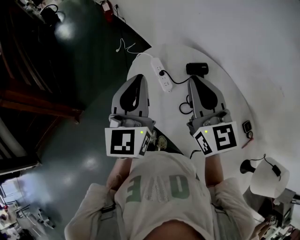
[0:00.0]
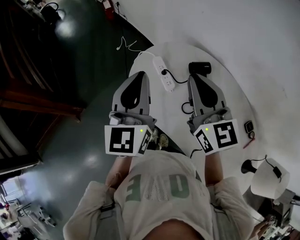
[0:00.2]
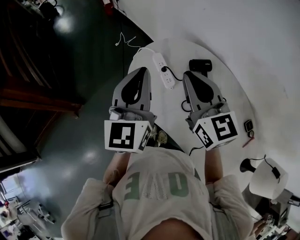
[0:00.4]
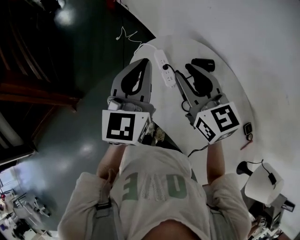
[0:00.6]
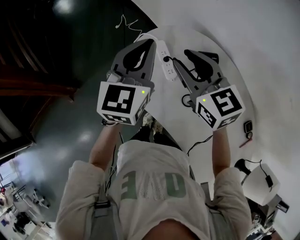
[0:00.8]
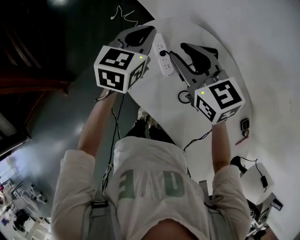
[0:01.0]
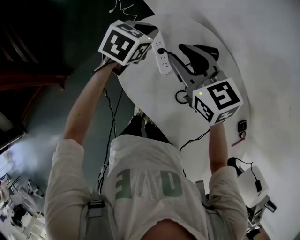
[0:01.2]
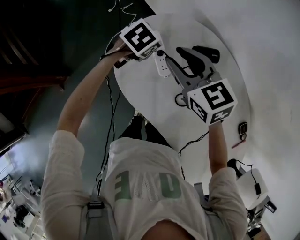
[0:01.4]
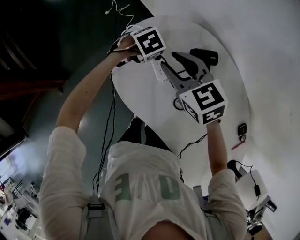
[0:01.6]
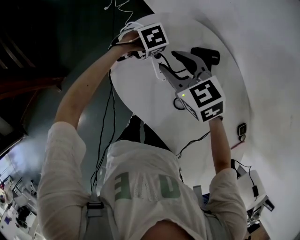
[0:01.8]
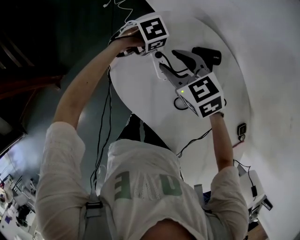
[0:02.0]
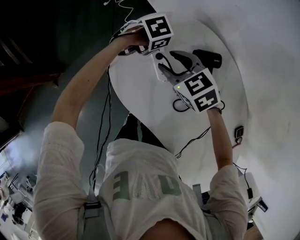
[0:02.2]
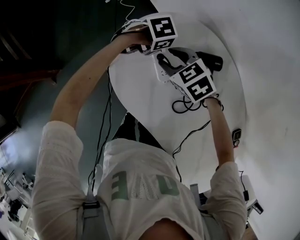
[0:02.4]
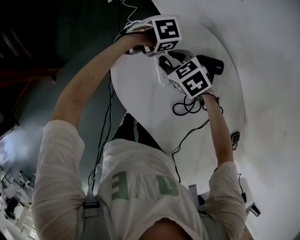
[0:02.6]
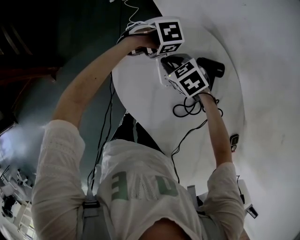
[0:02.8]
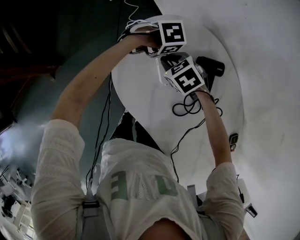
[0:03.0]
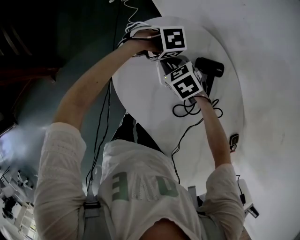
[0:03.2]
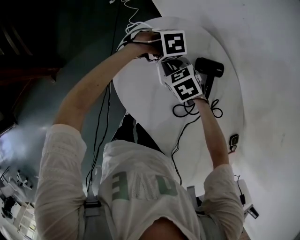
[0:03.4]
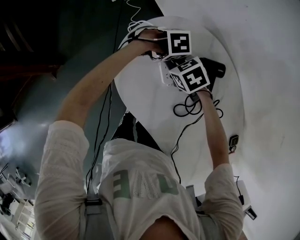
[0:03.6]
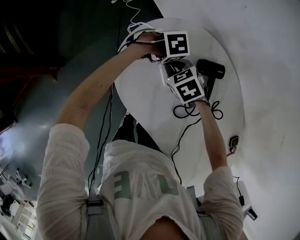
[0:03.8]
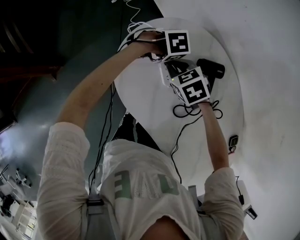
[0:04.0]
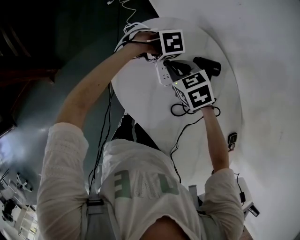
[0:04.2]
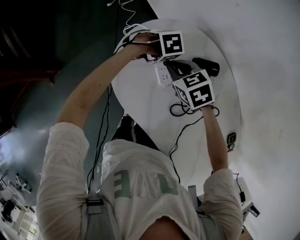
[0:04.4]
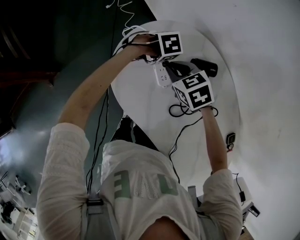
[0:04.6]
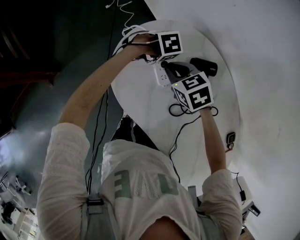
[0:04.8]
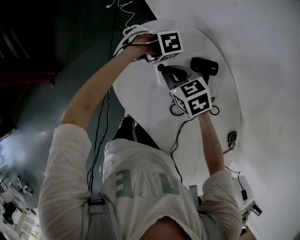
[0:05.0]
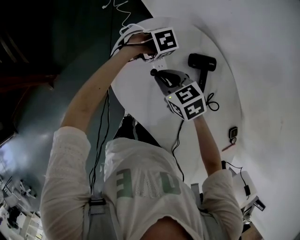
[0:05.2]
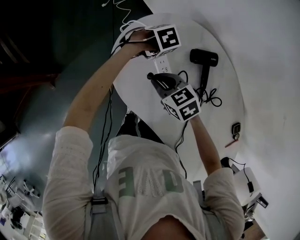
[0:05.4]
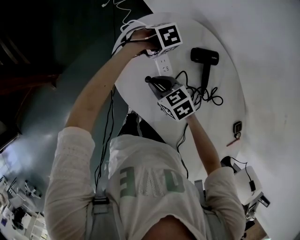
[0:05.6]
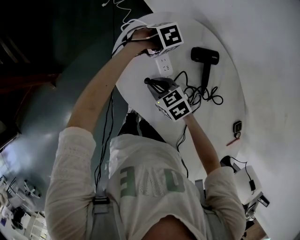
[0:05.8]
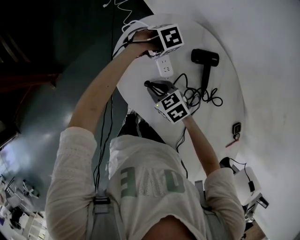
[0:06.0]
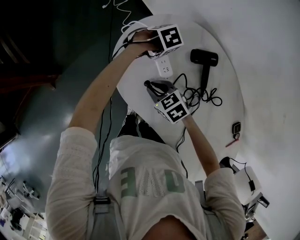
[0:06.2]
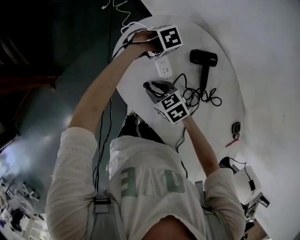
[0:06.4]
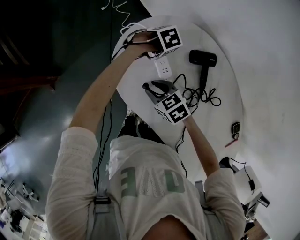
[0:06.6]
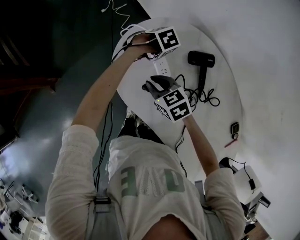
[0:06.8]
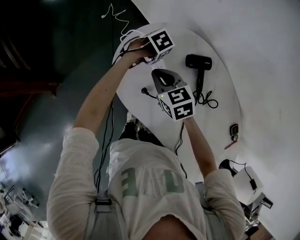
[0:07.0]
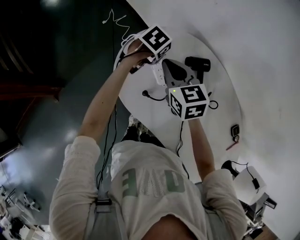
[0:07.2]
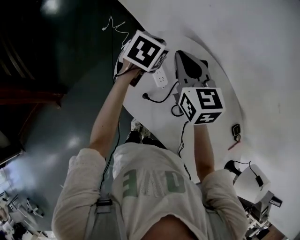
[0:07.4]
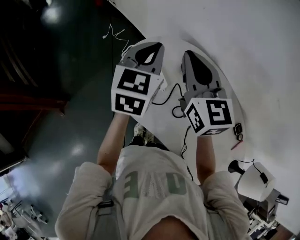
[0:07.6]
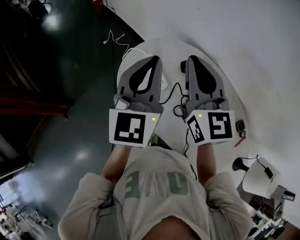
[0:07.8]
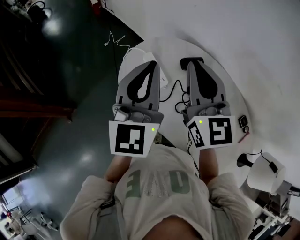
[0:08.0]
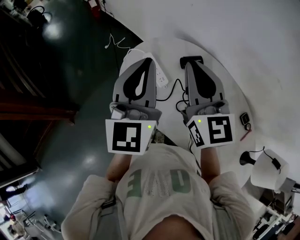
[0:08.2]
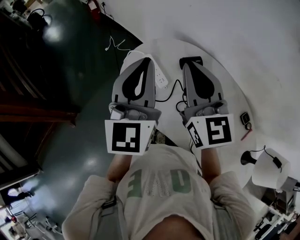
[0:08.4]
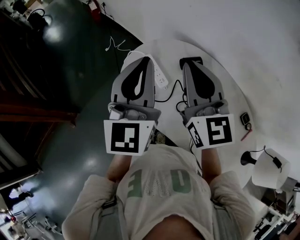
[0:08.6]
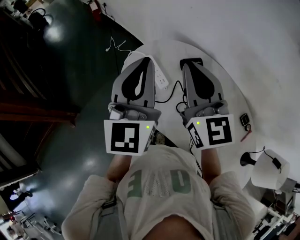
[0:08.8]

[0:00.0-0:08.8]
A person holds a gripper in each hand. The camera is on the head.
0:00.0 to 0:01.4: The right gripper moves downward and forward, roughly 20 cm, rotates about 30 degrees, and opens up. Meanwhile the left gripper goes about 35 cm downward and forward, and angles its fingers downward, by some 60 degrees.
0:01.4 to 0:03.0: The left gripper travels downward by approximately 10 cm, and rotates some 30 degrees. Meanwhile the right gripper is displaced downward by approximately 20 cm, and angles its fingers downward, by roughly 40 degrees.
0:03.0 to 0:04.4: The right gripper is displaced upward by roughly 5 cm.
0:04.4 to 0:05.8: The right gripper moves roughly 15 cm.
0:05.8 to 0:07.4: The two grippers go approximately 25 cm upward. The right gripper tilts its fingers some 30 degrees upward; the left gripper tips its fingers upward by roughly 40 degrees.
0:07.4 to 0:08.8: The right gripper is displaced backward and upward by roughly 15 cm. The left gripper moves upward and backward, about 30 cm, and points its fingers approximately 50 degrees further upward.

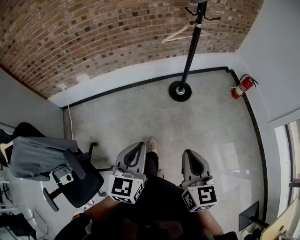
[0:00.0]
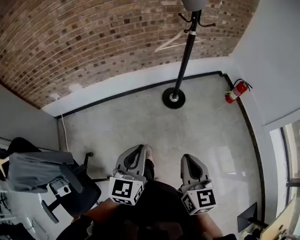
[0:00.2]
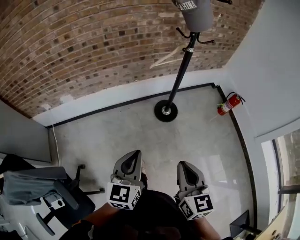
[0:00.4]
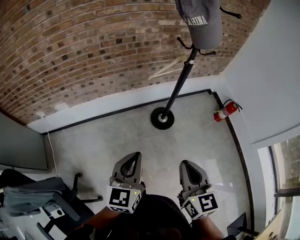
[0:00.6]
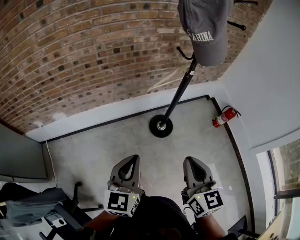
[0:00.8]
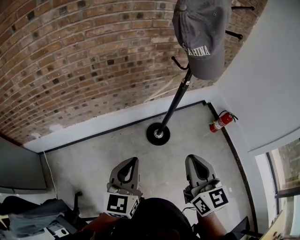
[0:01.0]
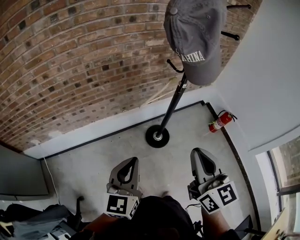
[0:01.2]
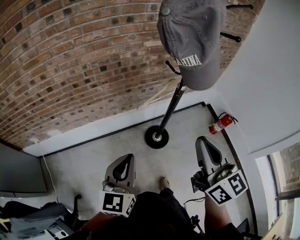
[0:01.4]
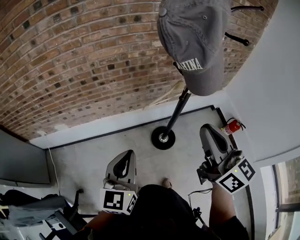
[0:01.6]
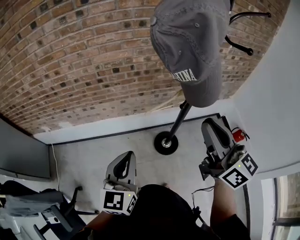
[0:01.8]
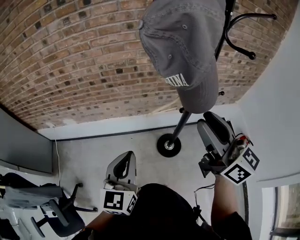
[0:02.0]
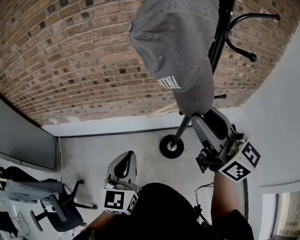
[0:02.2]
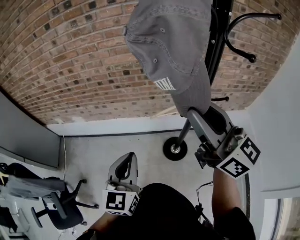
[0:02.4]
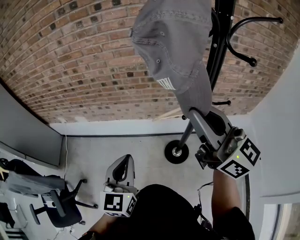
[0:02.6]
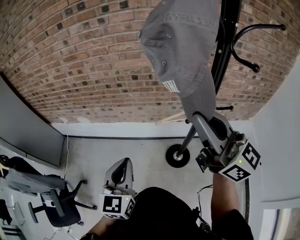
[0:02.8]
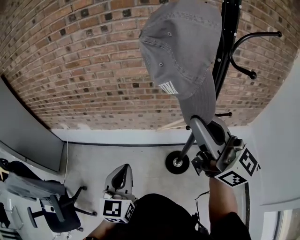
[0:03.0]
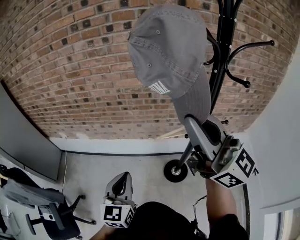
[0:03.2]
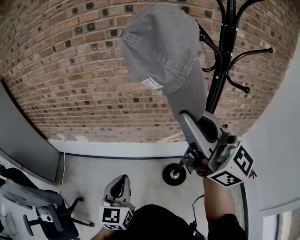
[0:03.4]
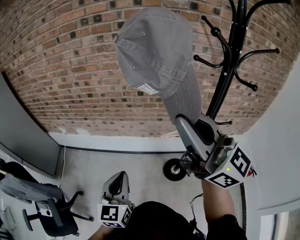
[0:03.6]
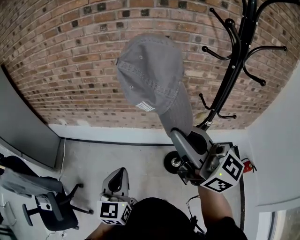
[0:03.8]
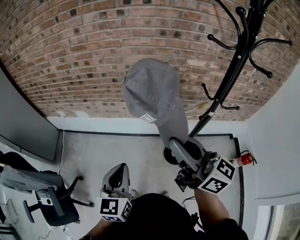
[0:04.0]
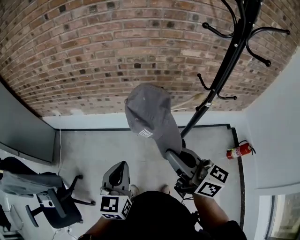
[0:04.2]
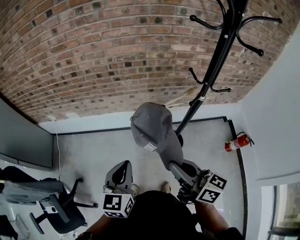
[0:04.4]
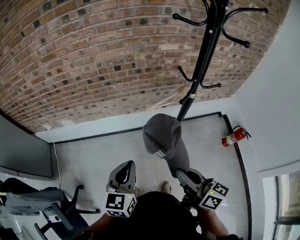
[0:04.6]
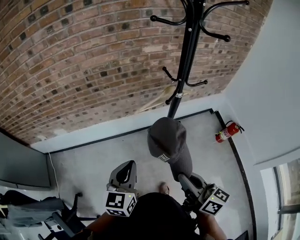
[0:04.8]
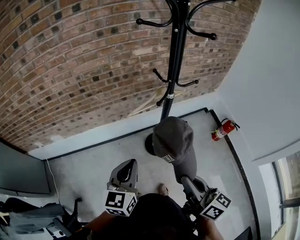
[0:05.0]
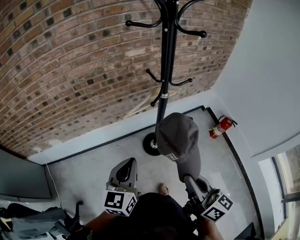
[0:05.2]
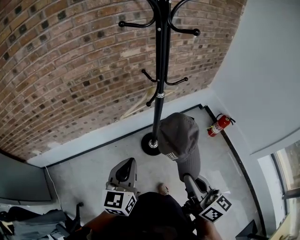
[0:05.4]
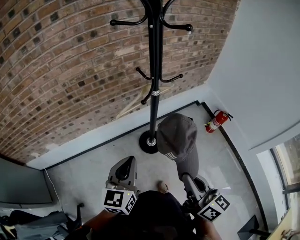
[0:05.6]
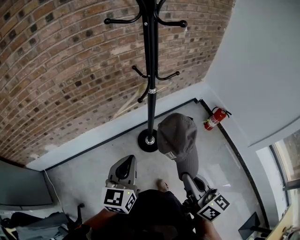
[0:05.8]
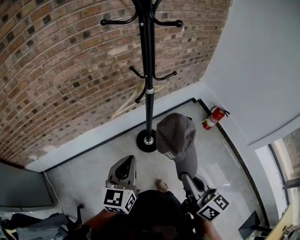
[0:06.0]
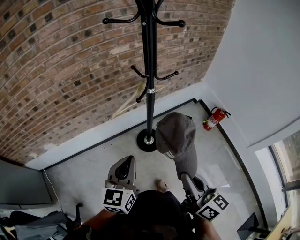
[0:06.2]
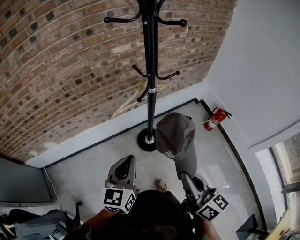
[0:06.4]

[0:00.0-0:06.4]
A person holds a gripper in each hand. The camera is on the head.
0:00.0 to 0:01.6: The pair of grippers is taken forward, some 50 cm. The right gripper moves upward, some 20 cm, and turns by some 30 degrees.
0:01.6 to 0:03.2: The left gripper swivels roughly 20 degrees, while the right gripper heads upward, covering some 15 cm, rotates roughly 40 degrees, and opens, then closes once more.
0:03.2 to 0:04.8: The right gripper heads downward, covering some 30 cm, and swivels roughly 50 degrees. Meanwhile the left gripper travels downward by approximately 5 cm, and rotates about 20 degrees.
0:04.8 to 0:06.4: The grippers both shift to the right by approximately 10 cm. The right gripper swivels some 20 degrees.

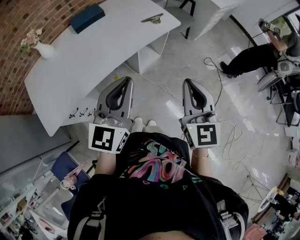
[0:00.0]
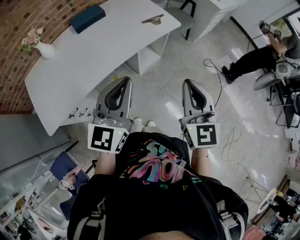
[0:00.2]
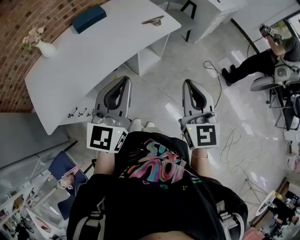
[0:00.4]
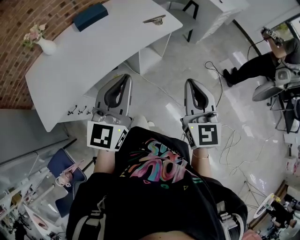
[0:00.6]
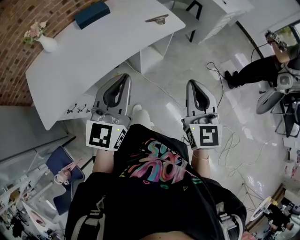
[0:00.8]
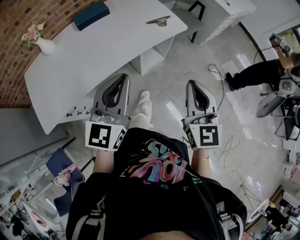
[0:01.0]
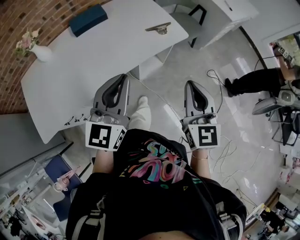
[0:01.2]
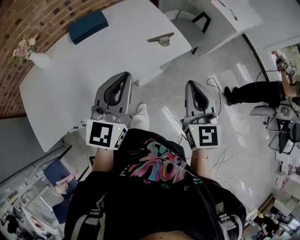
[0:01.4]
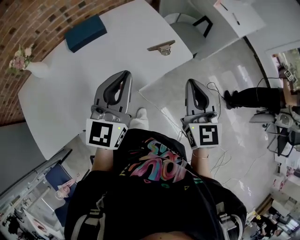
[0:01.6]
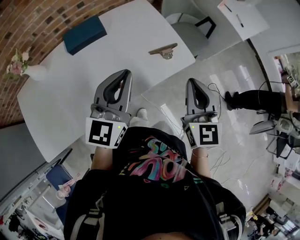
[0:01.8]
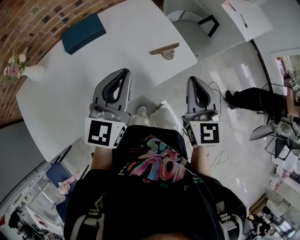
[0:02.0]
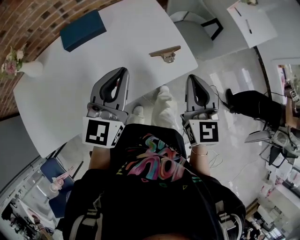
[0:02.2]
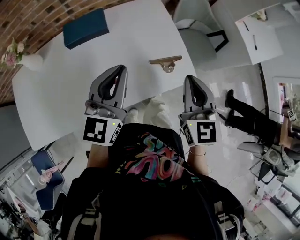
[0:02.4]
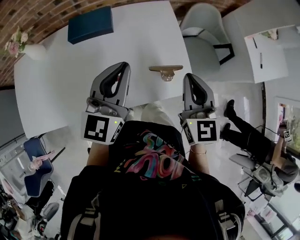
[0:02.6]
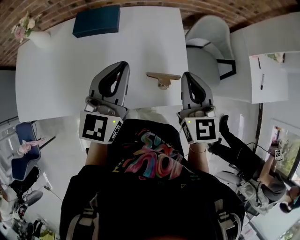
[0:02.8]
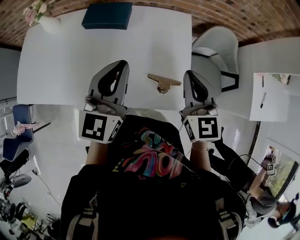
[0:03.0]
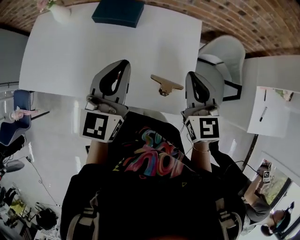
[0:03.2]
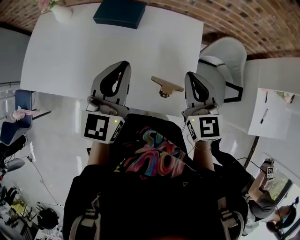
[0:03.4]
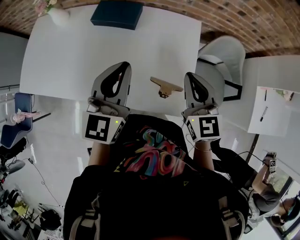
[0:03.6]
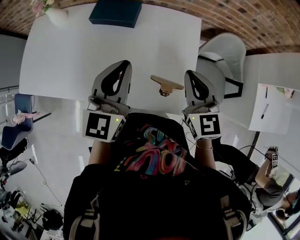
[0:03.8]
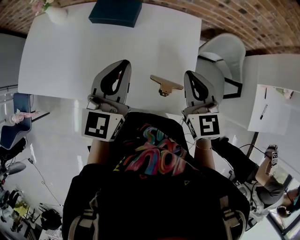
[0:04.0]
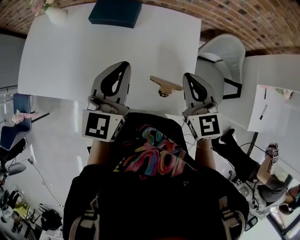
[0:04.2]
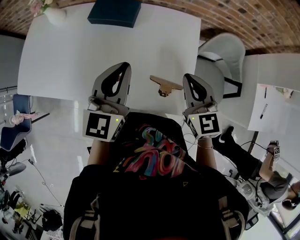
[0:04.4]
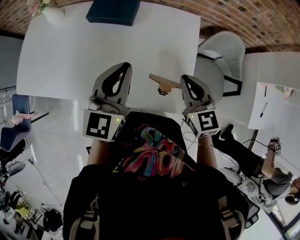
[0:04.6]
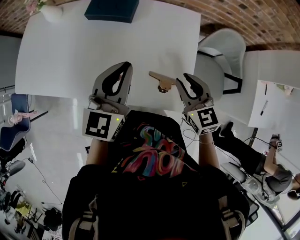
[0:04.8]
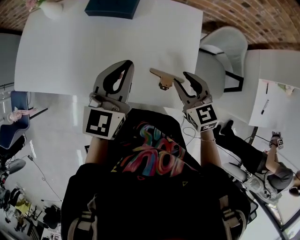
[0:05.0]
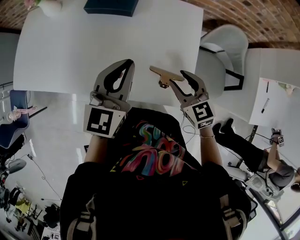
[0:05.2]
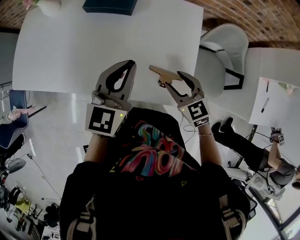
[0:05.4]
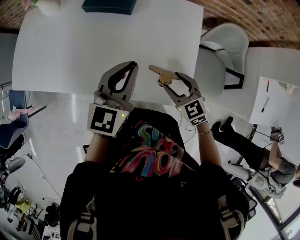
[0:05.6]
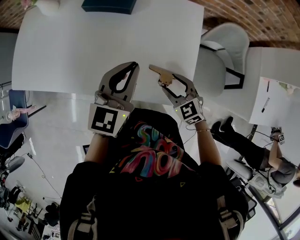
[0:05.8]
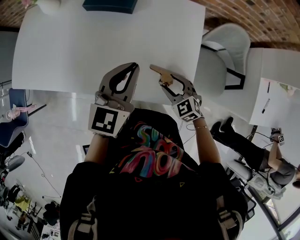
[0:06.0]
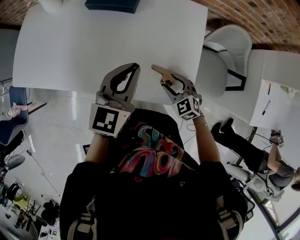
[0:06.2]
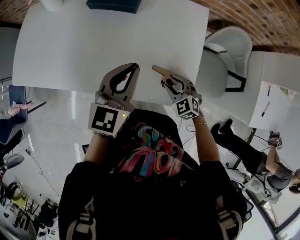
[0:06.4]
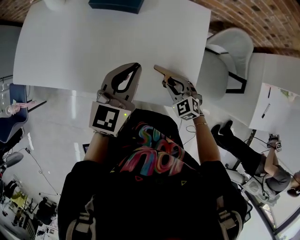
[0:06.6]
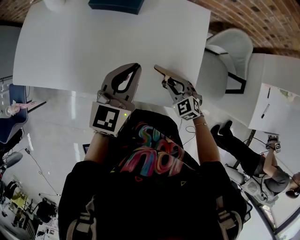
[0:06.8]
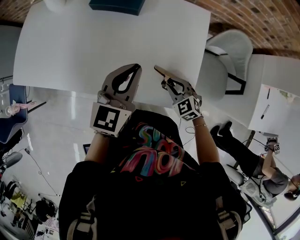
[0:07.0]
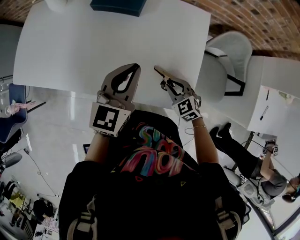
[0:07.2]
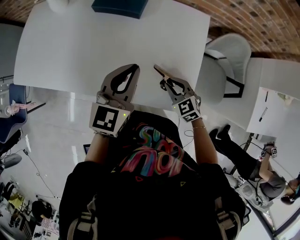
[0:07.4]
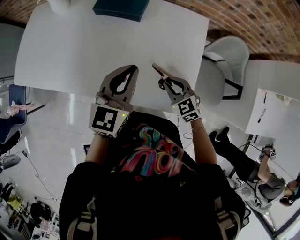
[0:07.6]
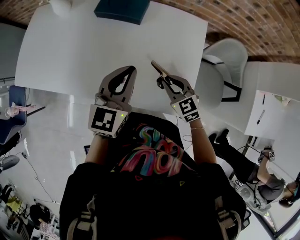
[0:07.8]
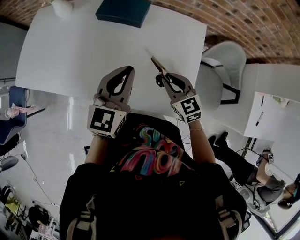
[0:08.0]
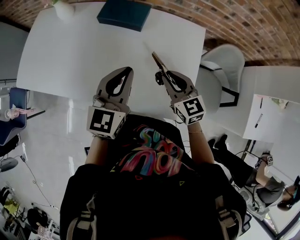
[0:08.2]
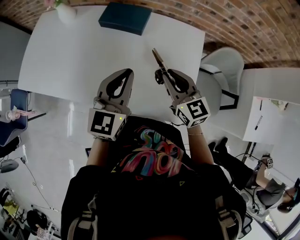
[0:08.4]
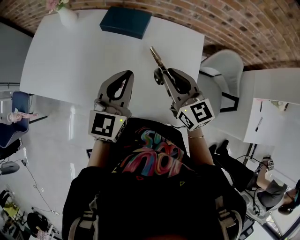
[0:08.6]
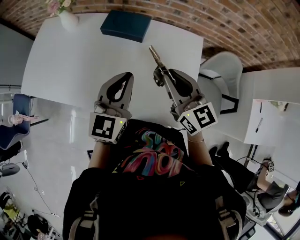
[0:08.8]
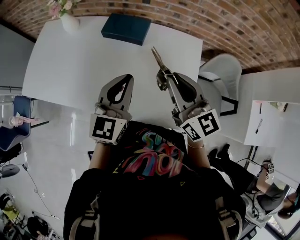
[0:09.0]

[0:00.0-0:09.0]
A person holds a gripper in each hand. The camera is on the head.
0:00.0 to 0:01.6: Both grippers move forward, approximately 30 cm.
0:01.6 to 0:03.0: The left gripper changes place by roughly 25 cm, and changes its angle by approximately 40 degrees. Meanwhile the right gripper moves approximately 35 cm, and changes its angle by roughly 40 degrees.
0:03.0 to 0:04.4: The right gripper shifts by roughly 5 cm.
0:04.4 to 0:06.0: The right gripper is displaced downward by some 20 cm, rotates some 30 degrees, and opens. Meanwhile the left gripper is displaced downward by about 5 cm.
0:06.0 to 0:07.6: The right gripper ends up about 5 cm from where it was, and closes up.
0:07.6 to 0:09.0: The left gripper shifts some 5 cm upward. Meanwhile the right gripper heads upward, covering some 25 cm, and points its fingers approximately 40 degrees further upward.
